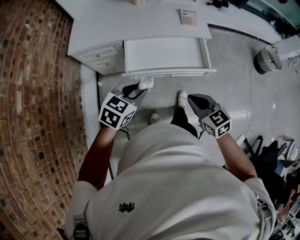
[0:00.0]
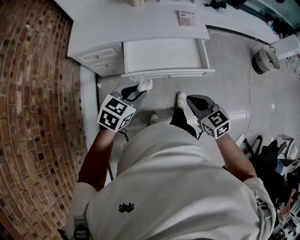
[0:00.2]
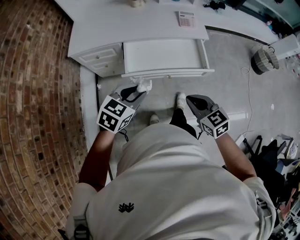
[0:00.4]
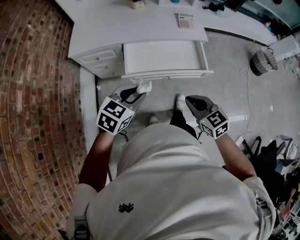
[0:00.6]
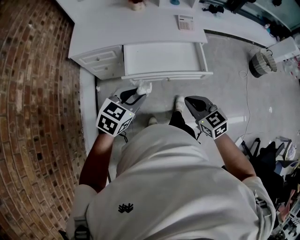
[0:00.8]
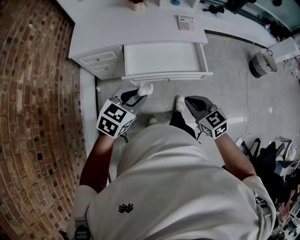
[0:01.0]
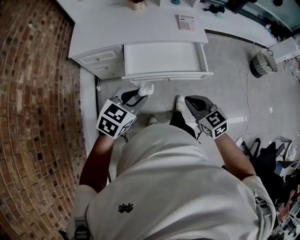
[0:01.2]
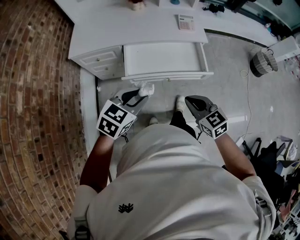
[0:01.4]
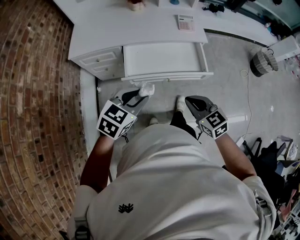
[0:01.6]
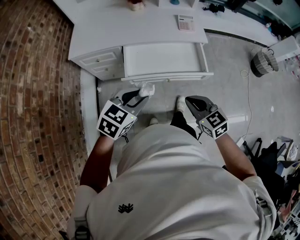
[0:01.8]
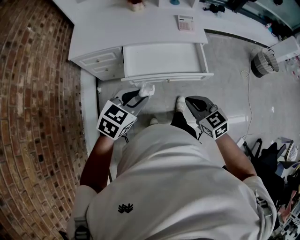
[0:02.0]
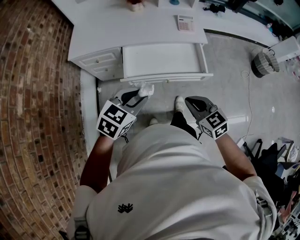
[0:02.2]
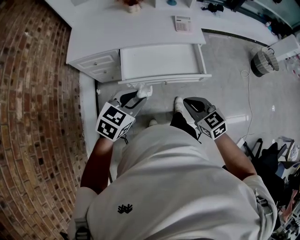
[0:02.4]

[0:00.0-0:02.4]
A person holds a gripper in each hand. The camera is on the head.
0:00.0 to 0:02.4: The grippers move only a little.

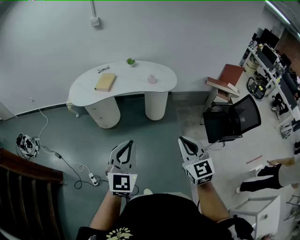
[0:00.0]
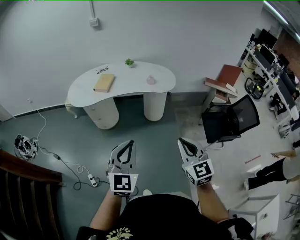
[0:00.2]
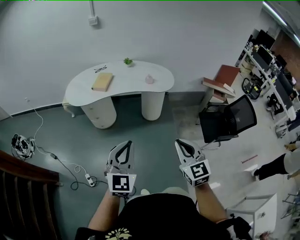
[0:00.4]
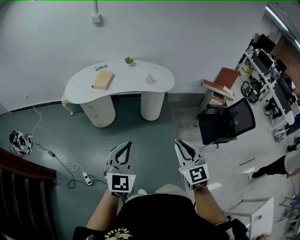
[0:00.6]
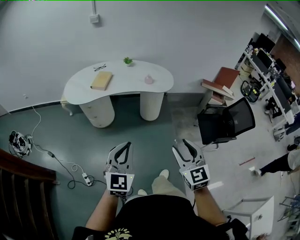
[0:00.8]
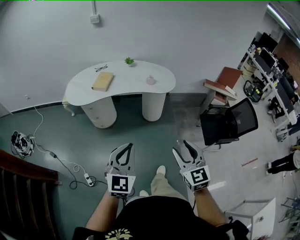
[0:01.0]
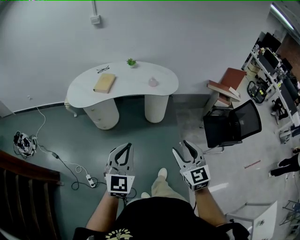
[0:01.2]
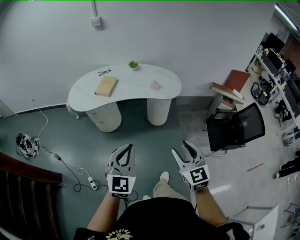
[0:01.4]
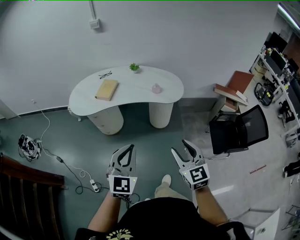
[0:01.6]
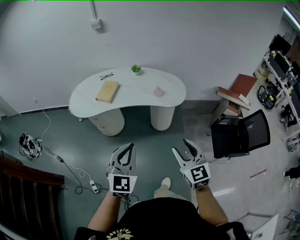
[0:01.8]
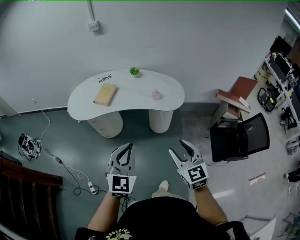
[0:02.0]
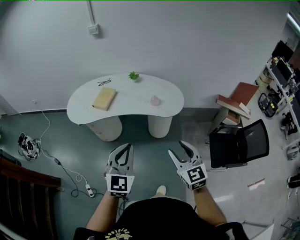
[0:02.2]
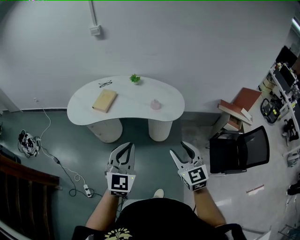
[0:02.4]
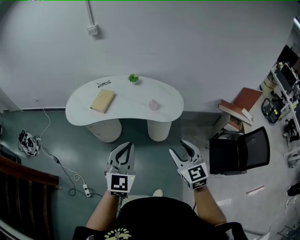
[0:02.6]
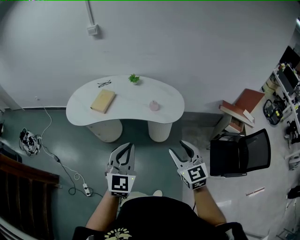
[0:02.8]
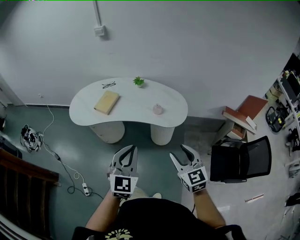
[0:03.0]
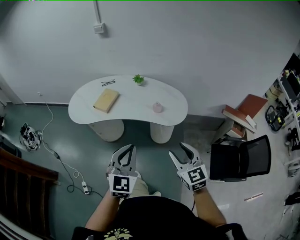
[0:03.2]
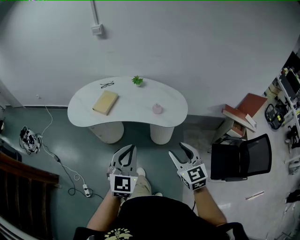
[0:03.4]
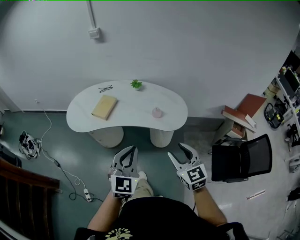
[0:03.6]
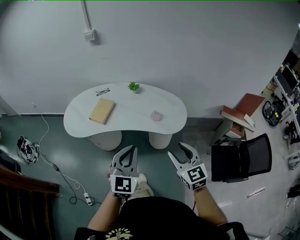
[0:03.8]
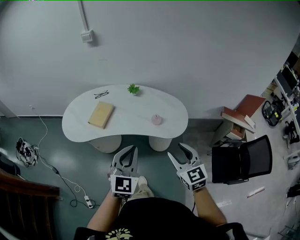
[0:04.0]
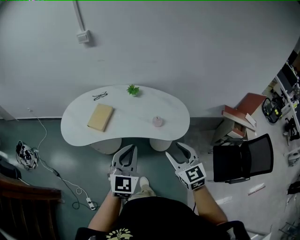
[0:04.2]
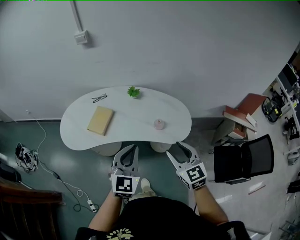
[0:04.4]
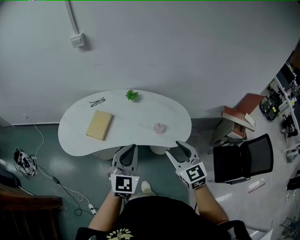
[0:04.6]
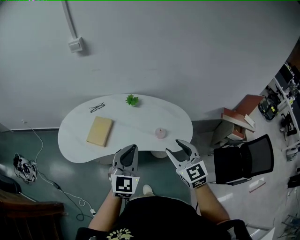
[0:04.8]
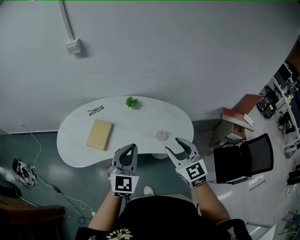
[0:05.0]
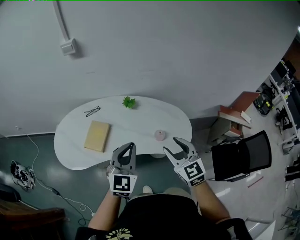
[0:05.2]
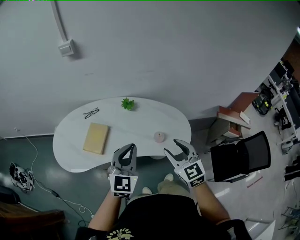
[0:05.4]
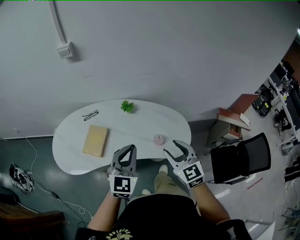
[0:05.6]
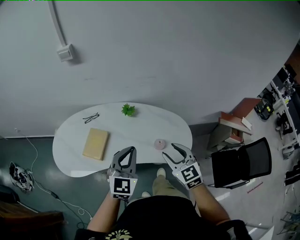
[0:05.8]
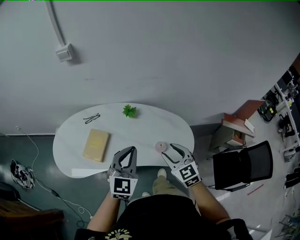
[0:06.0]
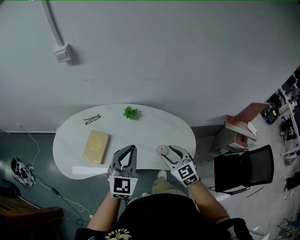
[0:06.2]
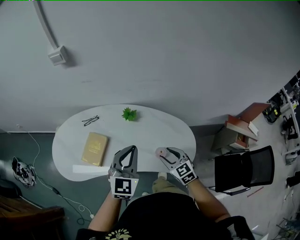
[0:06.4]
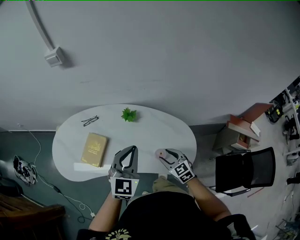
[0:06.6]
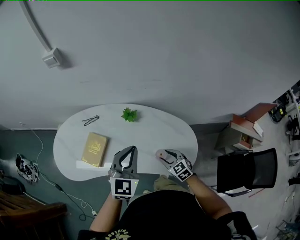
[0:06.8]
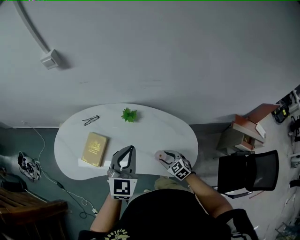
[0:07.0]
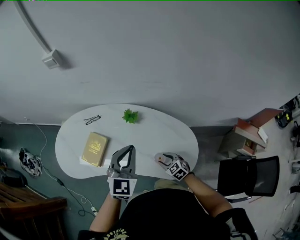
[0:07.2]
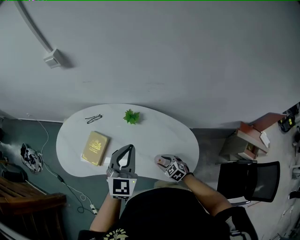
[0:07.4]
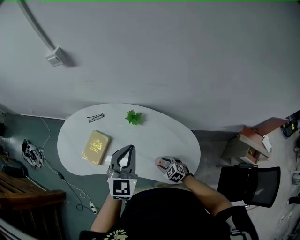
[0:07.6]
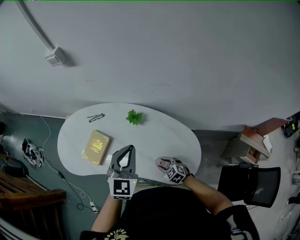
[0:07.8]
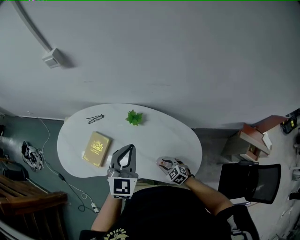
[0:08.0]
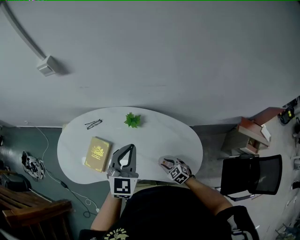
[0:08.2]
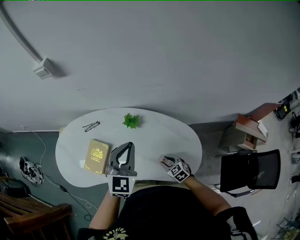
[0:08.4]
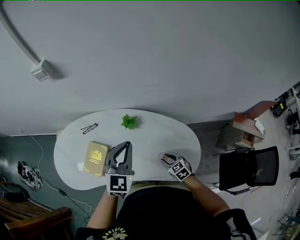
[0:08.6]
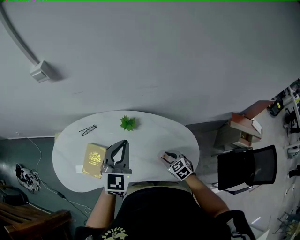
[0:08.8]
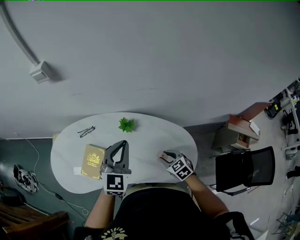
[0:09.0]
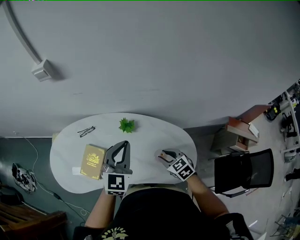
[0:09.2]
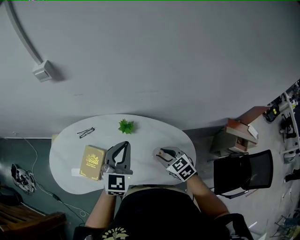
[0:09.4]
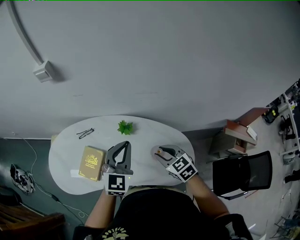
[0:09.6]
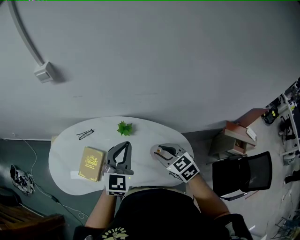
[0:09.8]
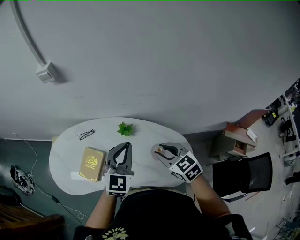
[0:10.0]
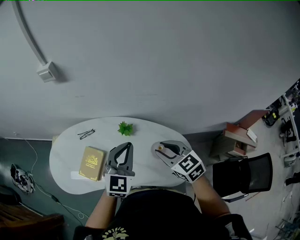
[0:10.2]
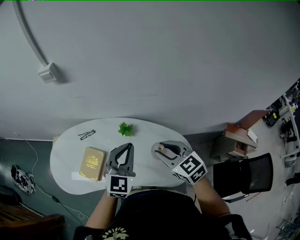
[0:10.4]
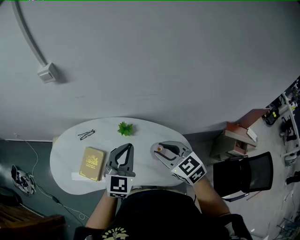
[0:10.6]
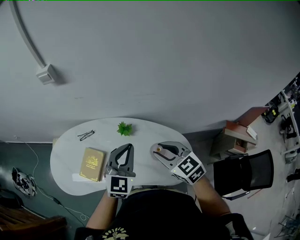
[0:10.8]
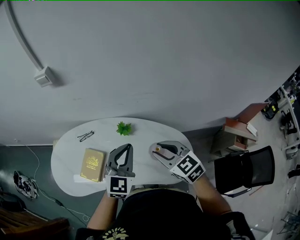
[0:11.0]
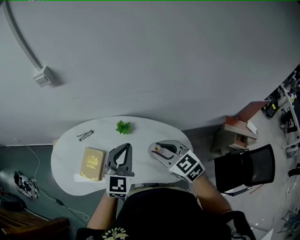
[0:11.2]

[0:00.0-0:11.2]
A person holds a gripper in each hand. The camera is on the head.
0:00.0 to 0:01.6: Both grippers move forward, approximately 15 cm. The right gripper opens.
0:01.6 to 0:03.2: Both grippers travel together forward and to the right, roughly 20 cm.
0:03.2 to 0:04.8: The grippers both shift forward by about 30 cm.
0:04.8 to 0:06.4: The left gripper is displaced forward by approximately 20 cm, while the right gripper shifts approximately 25 cm forward and downward.
0:06.4 to 0:08.0: The right gripper goes about 20 cm downward, and turns by some 30 degrees; the left gripper is displaced forward and to the right by approximately 10 cm.
0:08.0 to 0:09.6: The right gripper is displaced upward by approximately 25 cm, and rotates roughly 20 degrees.
0:09.6 to 0:11.2: The right gripper travels upward by approximately 10 cm.

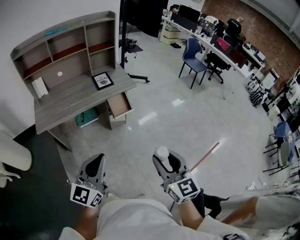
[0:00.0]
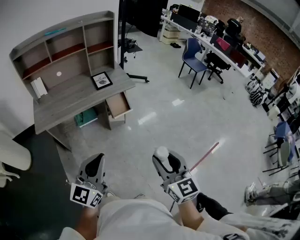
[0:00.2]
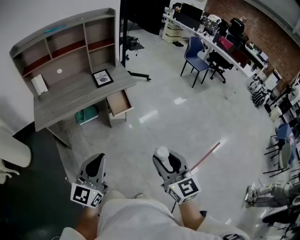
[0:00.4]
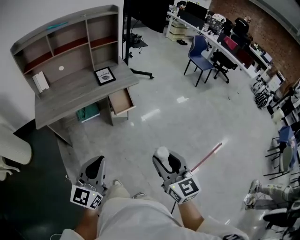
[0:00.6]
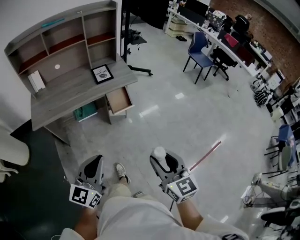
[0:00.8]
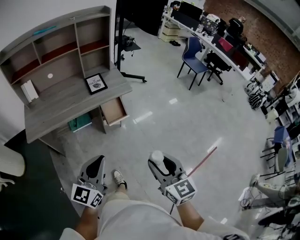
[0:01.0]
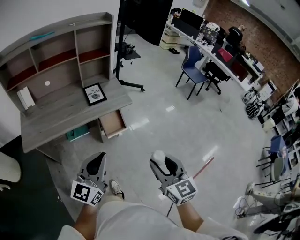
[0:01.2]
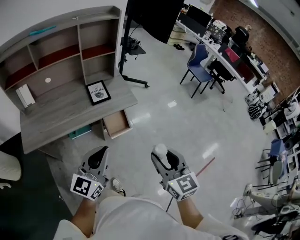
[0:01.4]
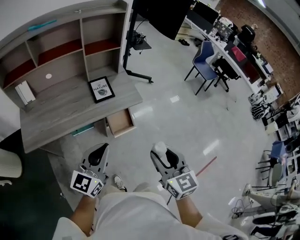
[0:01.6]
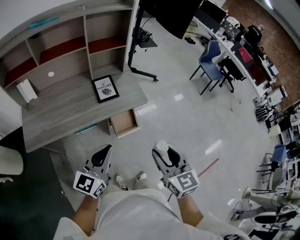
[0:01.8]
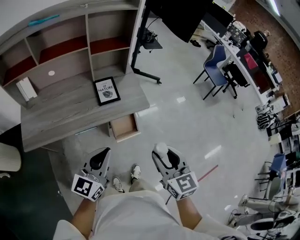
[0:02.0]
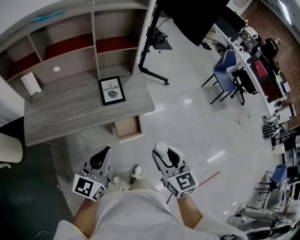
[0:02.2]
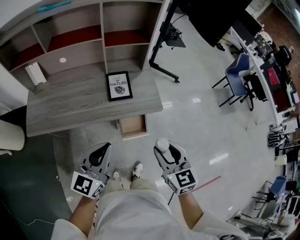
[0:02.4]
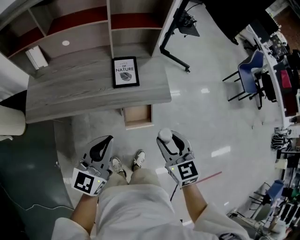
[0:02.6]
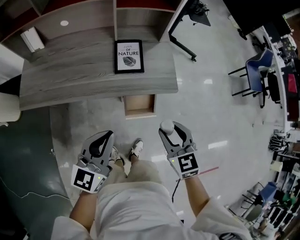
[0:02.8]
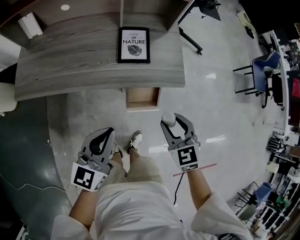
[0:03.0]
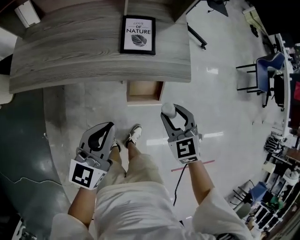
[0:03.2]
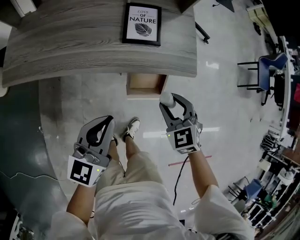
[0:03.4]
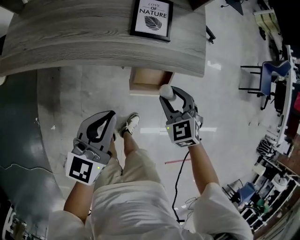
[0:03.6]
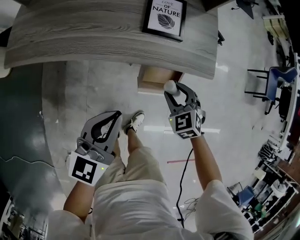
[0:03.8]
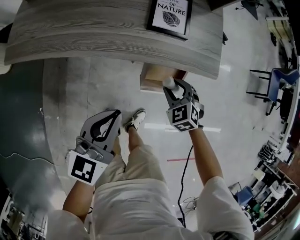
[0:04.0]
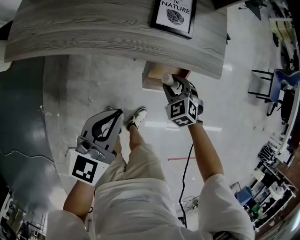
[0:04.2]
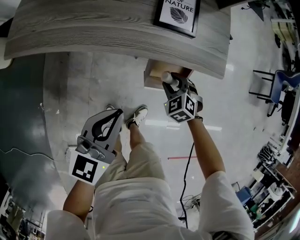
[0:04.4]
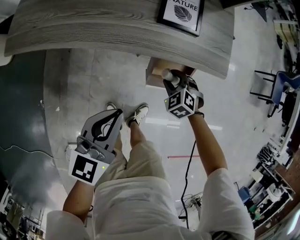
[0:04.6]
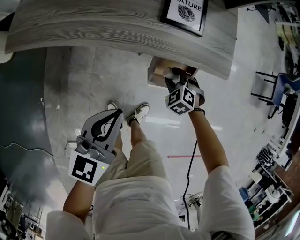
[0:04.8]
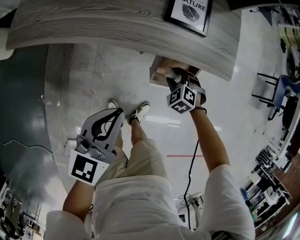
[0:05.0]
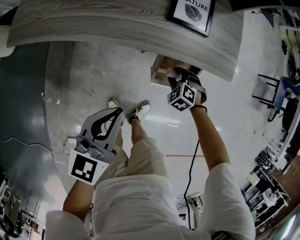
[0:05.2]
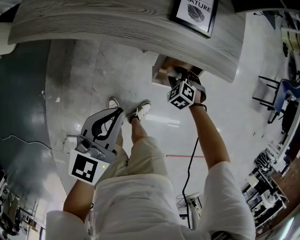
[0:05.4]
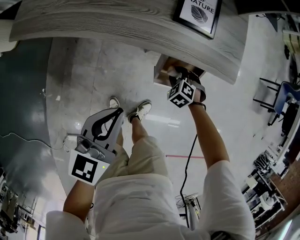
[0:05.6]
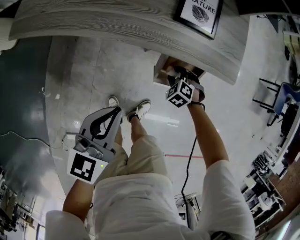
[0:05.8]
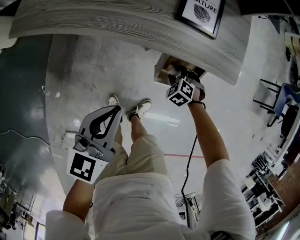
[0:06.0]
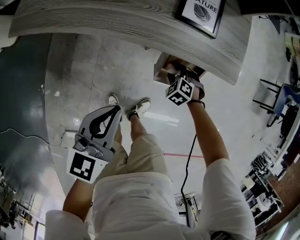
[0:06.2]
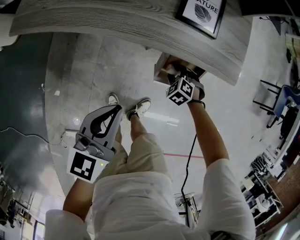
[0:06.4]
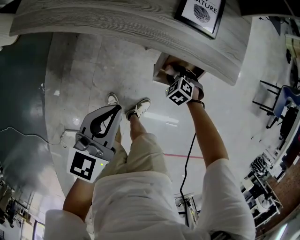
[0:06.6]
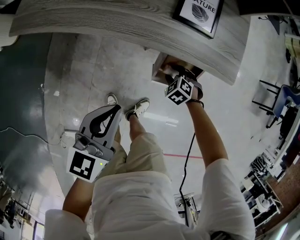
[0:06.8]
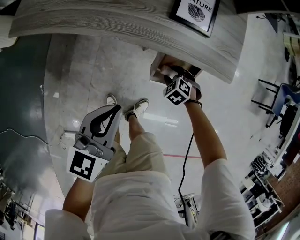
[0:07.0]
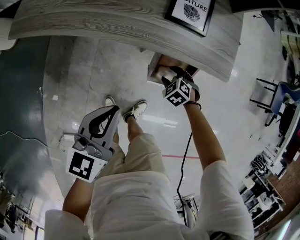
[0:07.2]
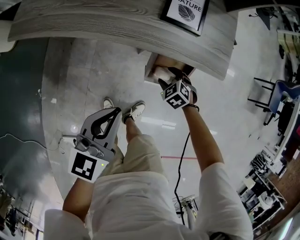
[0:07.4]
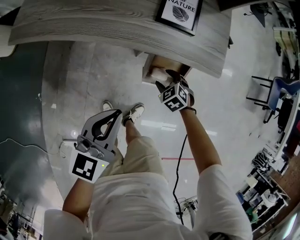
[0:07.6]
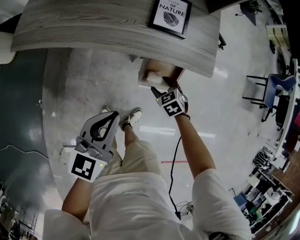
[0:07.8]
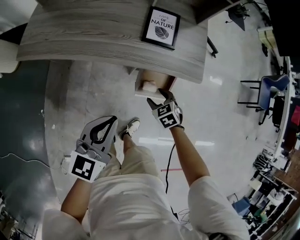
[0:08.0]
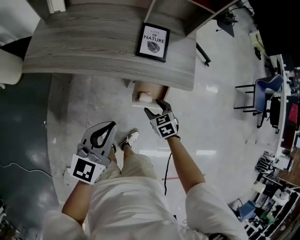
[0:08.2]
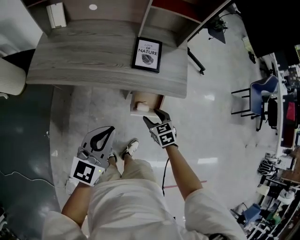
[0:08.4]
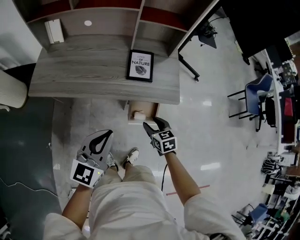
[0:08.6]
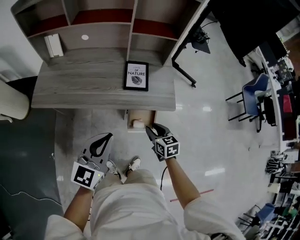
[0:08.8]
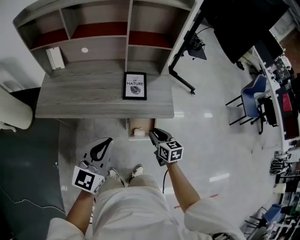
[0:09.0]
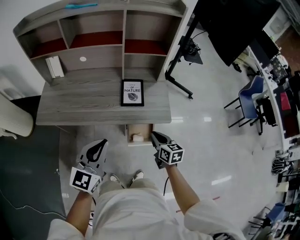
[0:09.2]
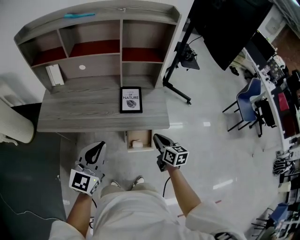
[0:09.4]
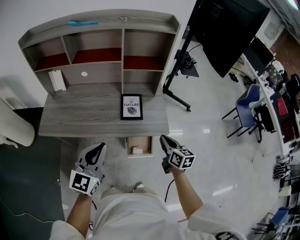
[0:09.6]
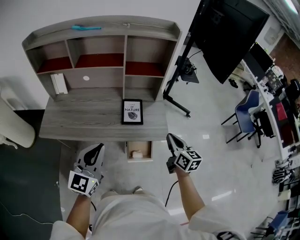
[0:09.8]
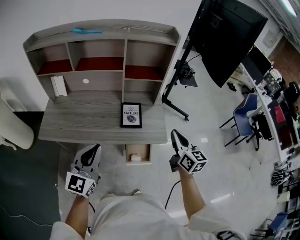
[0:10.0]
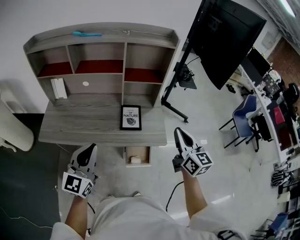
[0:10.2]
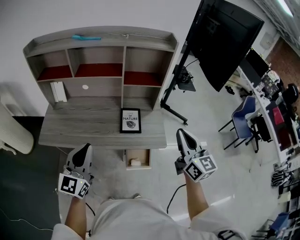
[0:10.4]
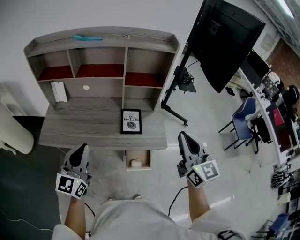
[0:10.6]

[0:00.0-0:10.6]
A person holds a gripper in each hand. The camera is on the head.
0:00.0 to 0:01.6: Both grippers travel together forward, roughly 30 cm.
0:01.6 to 0:03.0: The left gripper shifts about 20 cm downward and forward, and swivels some 30 degrees; the right gripper moves forward and downward, roughly 35 cm, and turns by about 40 degrees.
0:03.0 to 0:04.6: The left gripper travels downward by roughly 10 cm, while the right gripper shifts some 30 cm downward, and changes its angle by approximately 40 degrees.
0:04.6 to 0:06.0: The right gripper moves downward, some 10 cm.
0:06.0 to 0:07.6: The right gripper heads upward, covering about 5 cm.
0:07.6 to 0:09.0: The two grippers go about 25 cm upward. The left gripper turns by roughly 20 degrees, while the right gripper tips its fingers upward by about 40 degrees, and closes its fingers.
0:09.0 to 0:10.6: The left gripper is displaced to the left and upward by some 15 cm. Meanwhile the right gripper travels upward by about 35 cm, points its fingers some 30 degrees further upward, and closes.
